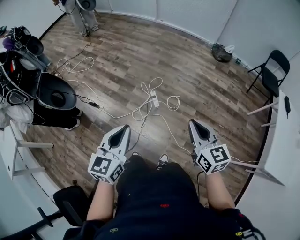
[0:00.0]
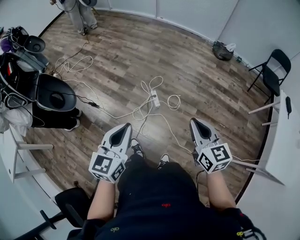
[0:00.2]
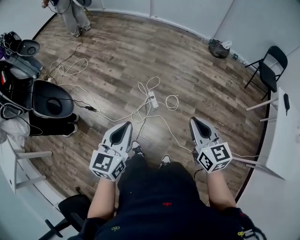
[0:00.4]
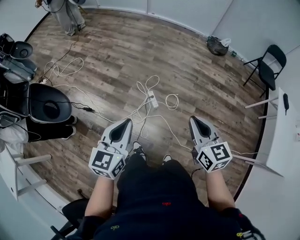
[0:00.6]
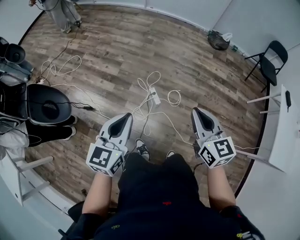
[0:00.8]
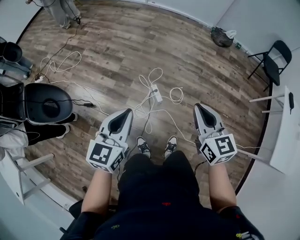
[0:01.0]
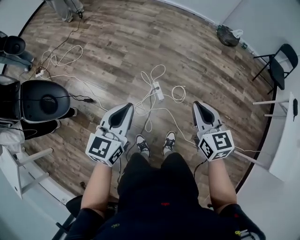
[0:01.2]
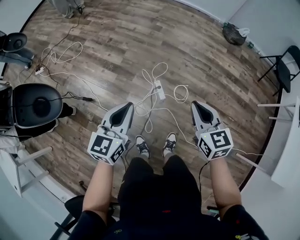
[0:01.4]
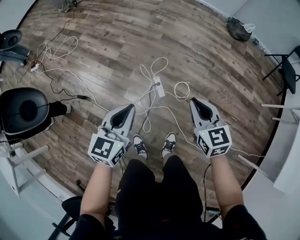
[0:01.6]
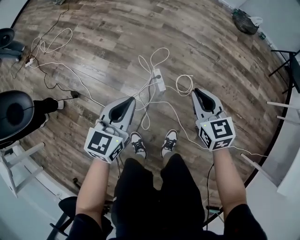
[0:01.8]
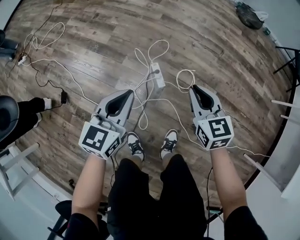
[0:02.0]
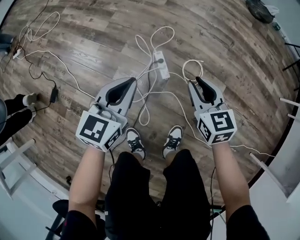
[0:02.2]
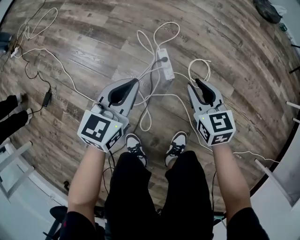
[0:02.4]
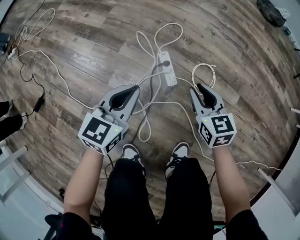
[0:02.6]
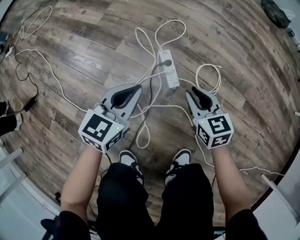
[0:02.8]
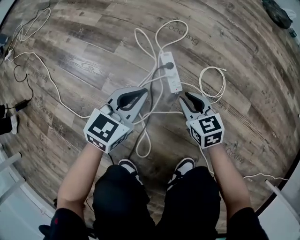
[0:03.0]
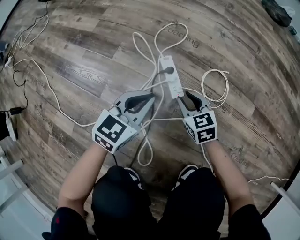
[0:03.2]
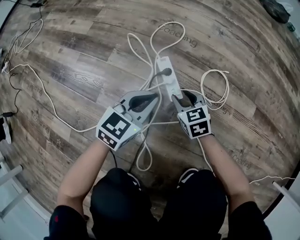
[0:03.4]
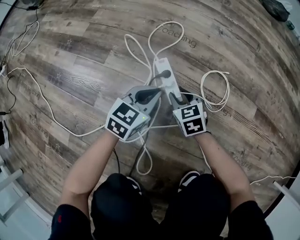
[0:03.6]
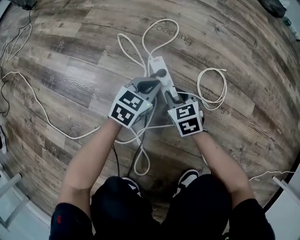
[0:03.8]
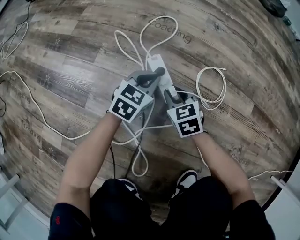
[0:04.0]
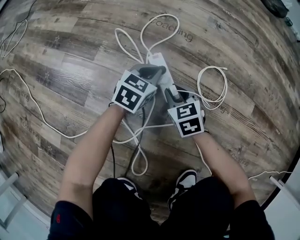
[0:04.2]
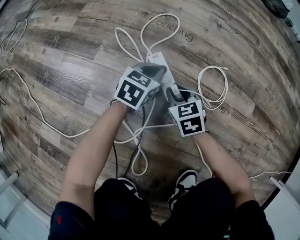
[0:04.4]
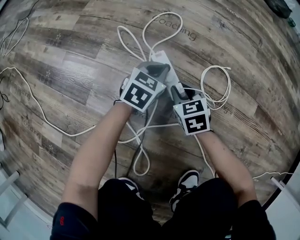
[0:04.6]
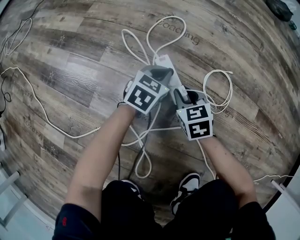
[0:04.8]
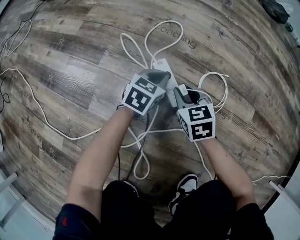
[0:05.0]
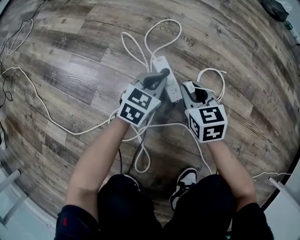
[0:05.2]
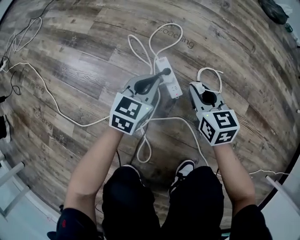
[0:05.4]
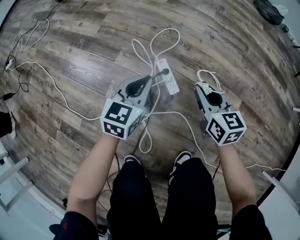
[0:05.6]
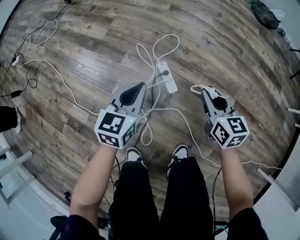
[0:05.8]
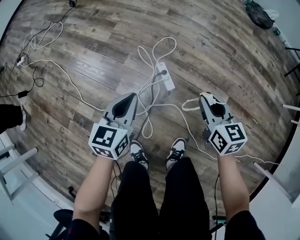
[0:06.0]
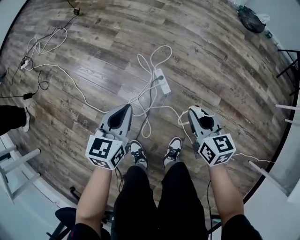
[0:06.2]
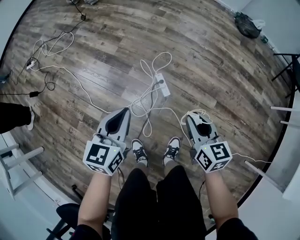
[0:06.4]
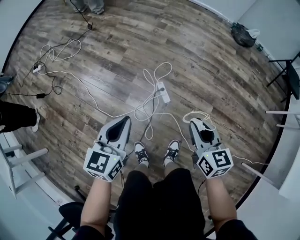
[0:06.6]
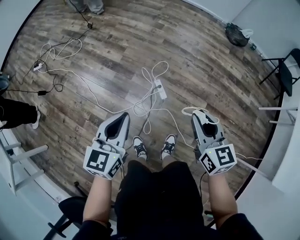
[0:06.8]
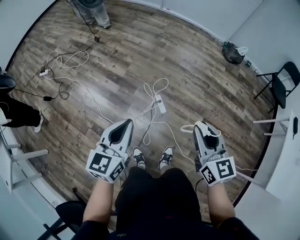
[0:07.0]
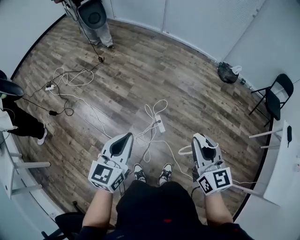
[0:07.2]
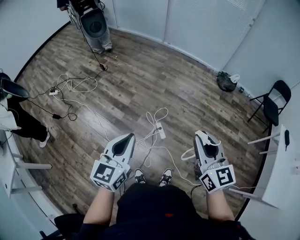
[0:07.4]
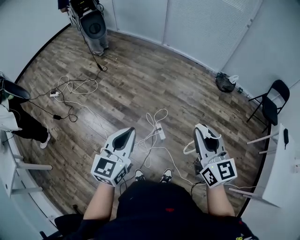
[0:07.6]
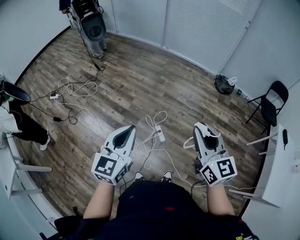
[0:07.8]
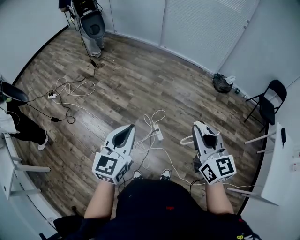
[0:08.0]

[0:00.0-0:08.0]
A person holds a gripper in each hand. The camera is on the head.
0:00.0 to 0:01.6: Both grippers travel together forward and downward, roughly 35 cm.
0:01.6 to 0:03.2: Both grippers travel together downward, roughly 70 cm. The right gripper opens. Meanwhile the left gripper swivels some 20 degrees.
0:03.2 to 0:04.8: The left gripper moves downward and forward, approximately 20 cm, while the right gripper goes some 5 cm forward.
0:04.8 to 0:06.4: The grippers both shift upward by approximately 60 cm. The right gripper swivels roughly 30 degrees. Meanwhile the left gripper changes its angle by approximately 30 degrees.
0:06.4 to 0:08.0: The two grippers go some 50 cm upward. The left gripper turns by about 20 degrees, while the right gripper rotates approximately 30 degrees.

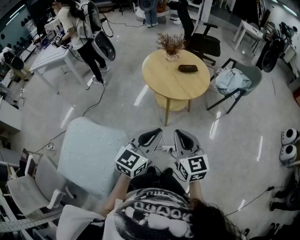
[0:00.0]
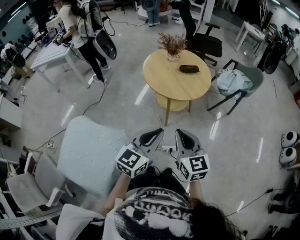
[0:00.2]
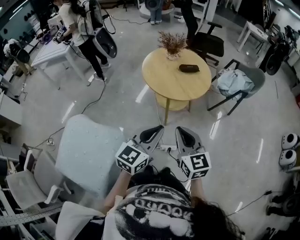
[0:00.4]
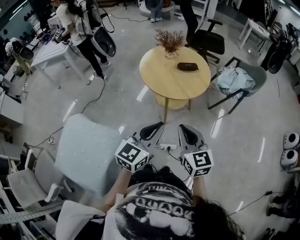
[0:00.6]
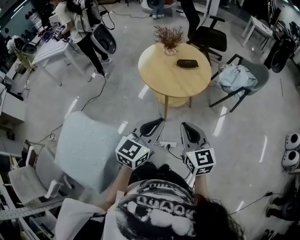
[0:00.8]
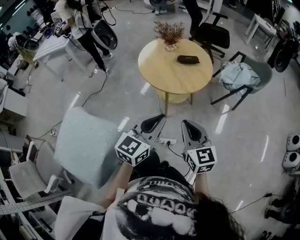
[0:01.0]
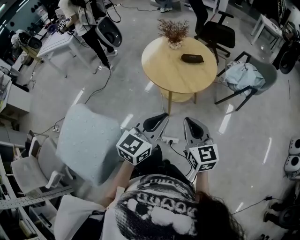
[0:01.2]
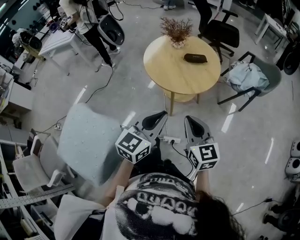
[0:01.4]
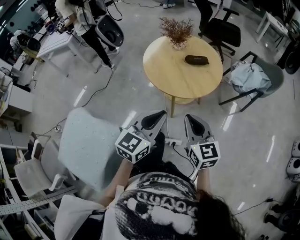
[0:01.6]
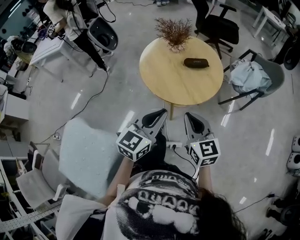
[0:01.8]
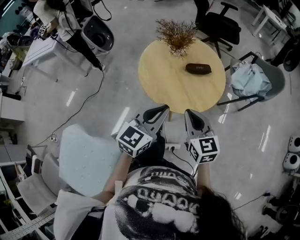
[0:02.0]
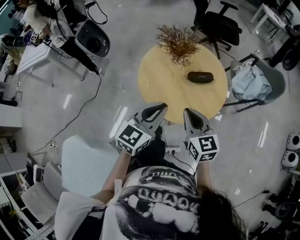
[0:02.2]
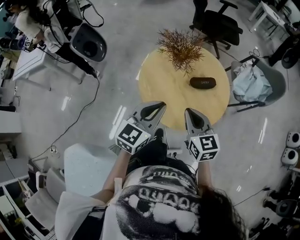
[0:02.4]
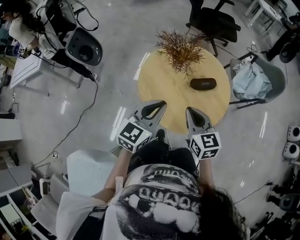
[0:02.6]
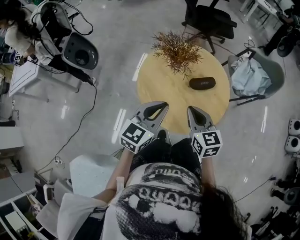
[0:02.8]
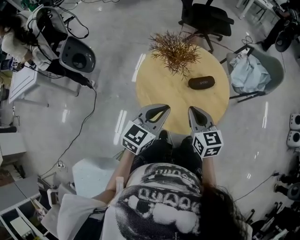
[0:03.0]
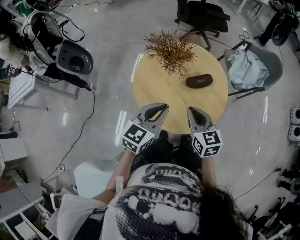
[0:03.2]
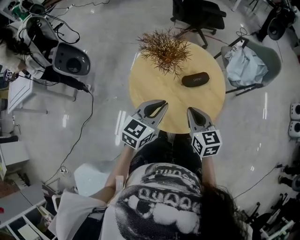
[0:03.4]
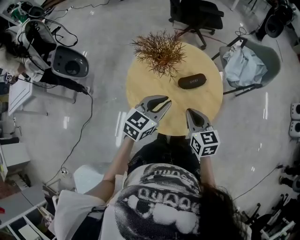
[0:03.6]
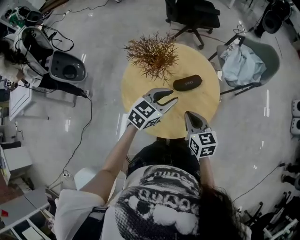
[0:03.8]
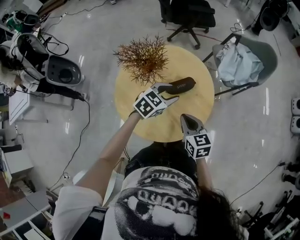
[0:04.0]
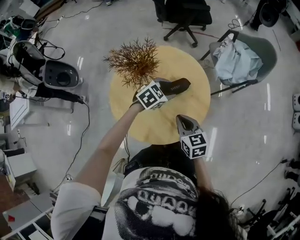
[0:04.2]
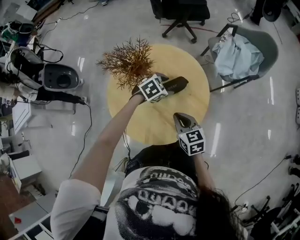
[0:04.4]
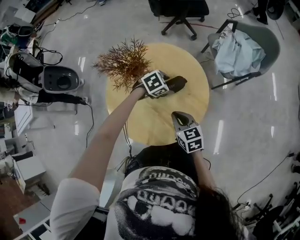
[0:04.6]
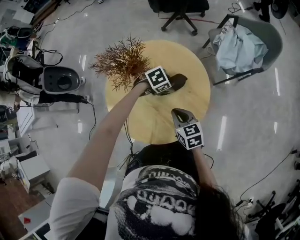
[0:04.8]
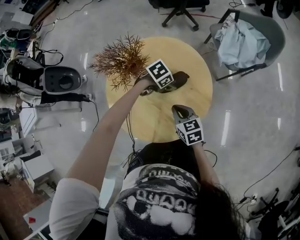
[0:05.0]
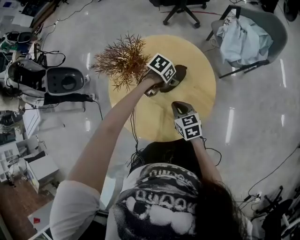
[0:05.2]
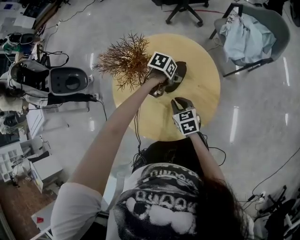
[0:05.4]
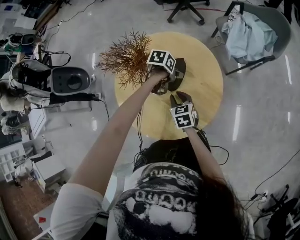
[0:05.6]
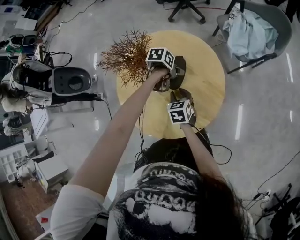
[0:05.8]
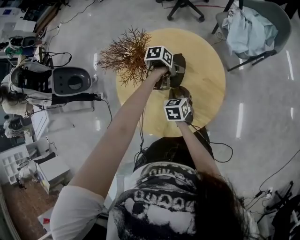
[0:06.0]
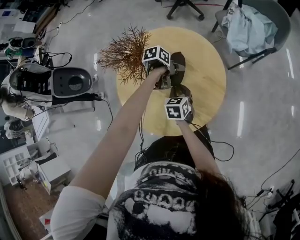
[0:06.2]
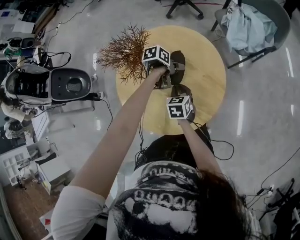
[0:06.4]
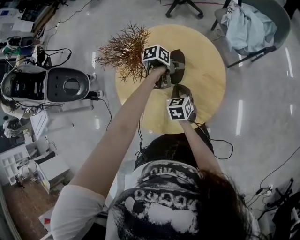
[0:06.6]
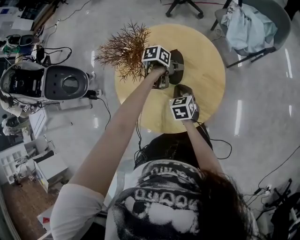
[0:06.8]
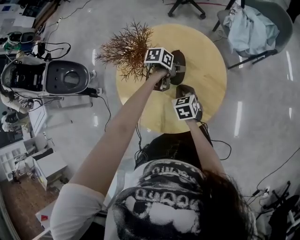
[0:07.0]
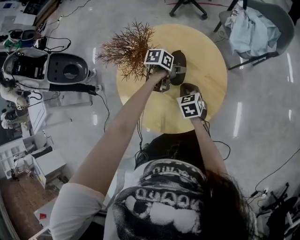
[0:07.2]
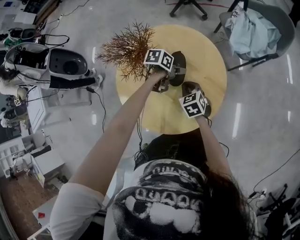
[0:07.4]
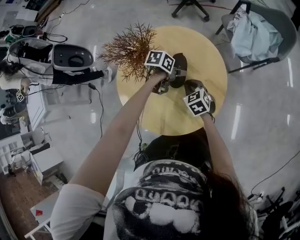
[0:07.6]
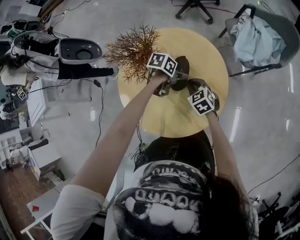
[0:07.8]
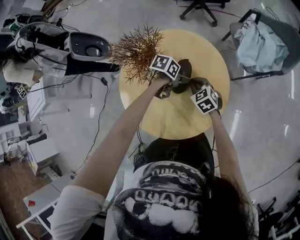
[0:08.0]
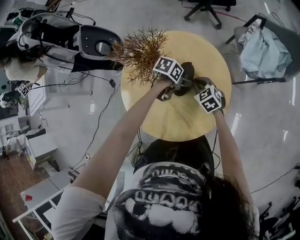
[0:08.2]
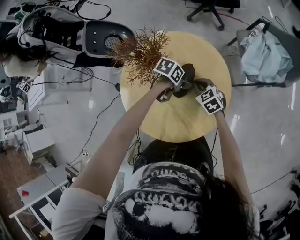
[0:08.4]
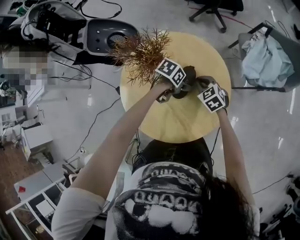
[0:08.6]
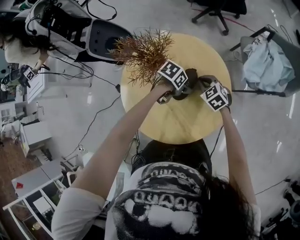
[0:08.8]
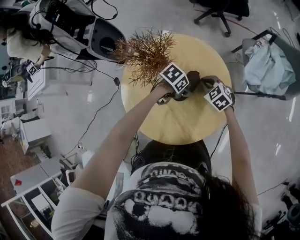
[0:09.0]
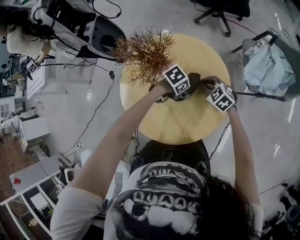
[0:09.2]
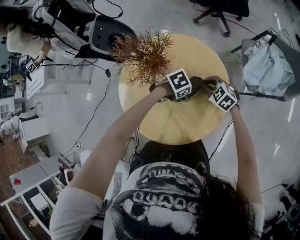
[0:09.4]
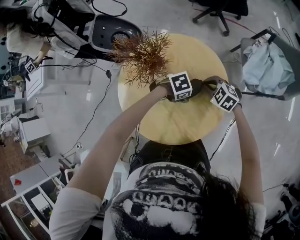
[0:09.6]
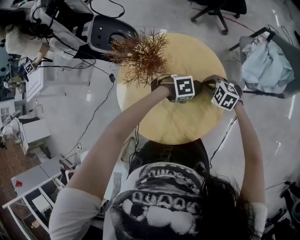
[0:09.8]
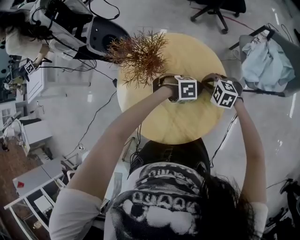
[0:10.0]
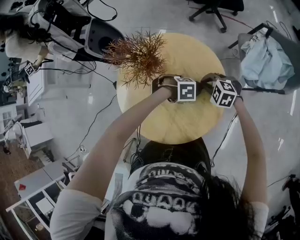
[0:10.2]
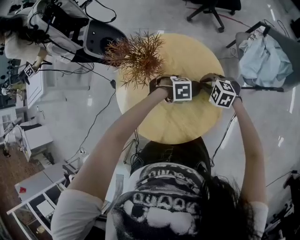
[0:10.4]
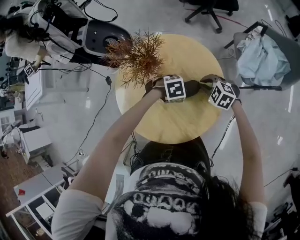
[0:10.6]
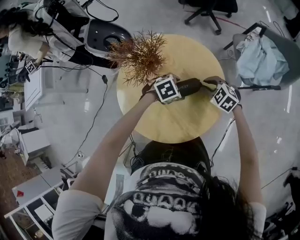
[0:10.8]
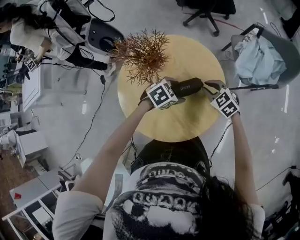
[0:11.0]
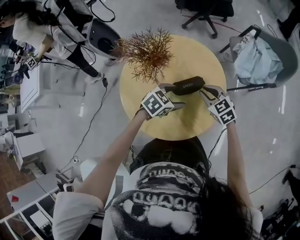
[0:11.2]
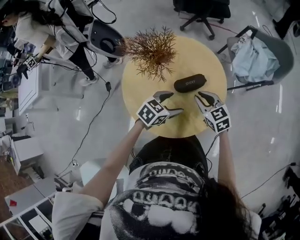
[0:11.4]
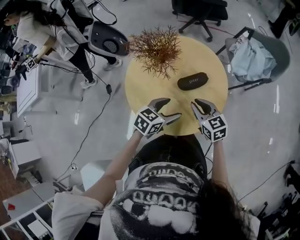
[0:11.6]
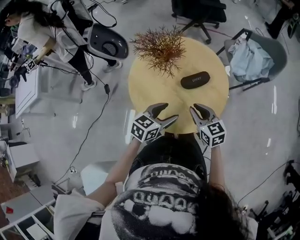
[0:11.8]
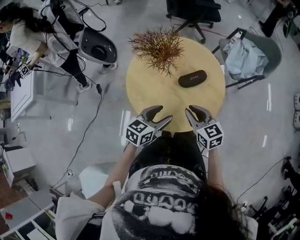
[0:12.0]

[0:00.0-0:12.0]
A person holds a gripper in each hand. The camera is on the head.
0:00.0 to 0:01.6: The two grippers go about 15 cm forward and to the right.
0:01.6 to 0:03.0: Both grippers move forward, some 30 cm.
0:03.0 to 0:04.4: The right gripper travels downward, to the right and forward by approximately 15 cm. Meanwhile the left gripper shifts approximately 30 cm forward, downward and to the right, angles its fingers downward, by some 40 degrees, and opens up.
0:04.4 to 0:06.0: The left gripper goes some 5 cm downward, and rolls counterclockwise, seen from behind, by about 60 degrees. Meanwhile the right gripper shifts approximately 10 cm downward, rotates roughly 20 degrees, and opens.
0:06.0 to 0:07.6: The right gripper swivels about 30 degrees, and closes up.
0:07.6 to 0:09.0: The right gripper moves some 10 cm, and swivels some 30 degrees.
0:09.0 to 0:10.4: The left gripper rolls clockwise, seen from behind, by about 40 degrees, while the right gripper swivels some 30 degrees.
0:10.4 to 0:12.0: The right gripper shifts by roughly 25 cm, and rotates approximately 60 degrees. Meanwhile the left gripper moves about 25 cm, and tilts its fingers roughly 50 degrees upward.

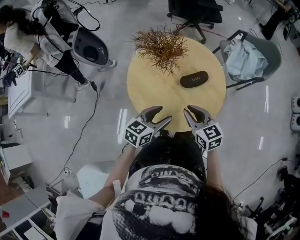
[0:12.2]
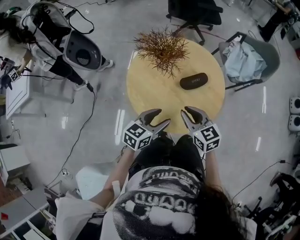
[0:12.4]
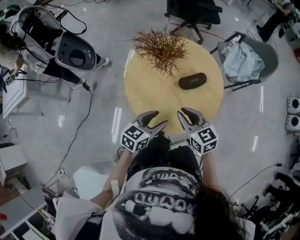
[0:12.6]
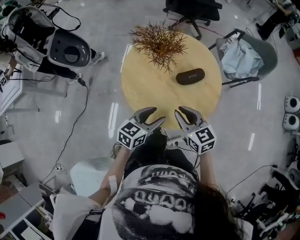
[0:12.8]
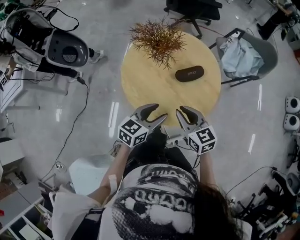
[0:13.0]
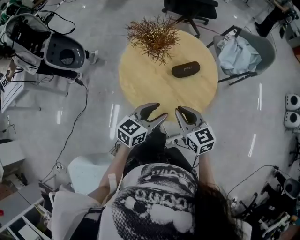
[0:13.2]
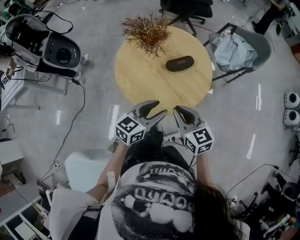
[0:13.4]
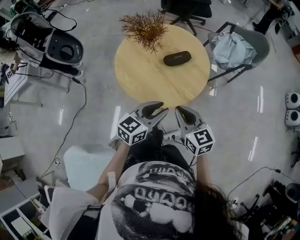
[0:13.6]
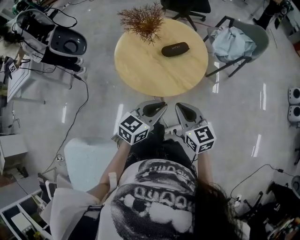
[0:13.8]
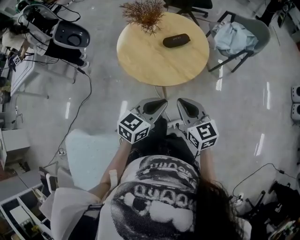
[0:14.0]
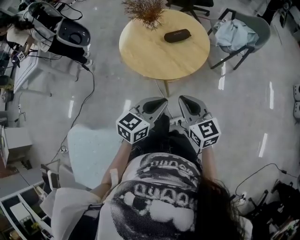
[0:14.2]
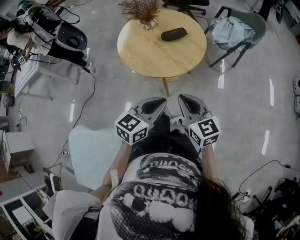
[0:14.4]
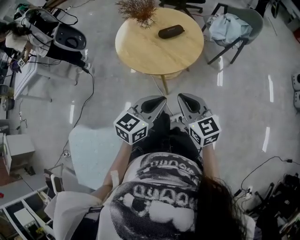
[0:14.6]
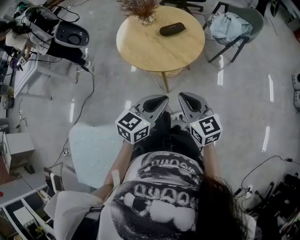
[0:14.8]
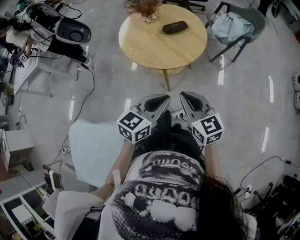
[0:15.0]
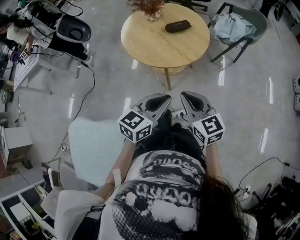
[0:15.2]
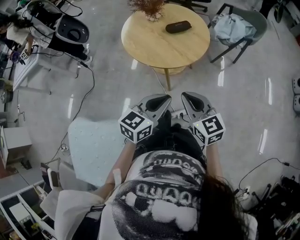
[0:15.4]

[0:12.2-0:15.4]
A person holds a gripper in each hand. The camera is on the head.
0:12.2 to 0:13.8: The left gripper travels backward, to the right and upward by approximately 20 cm, and closes its fingers. Meanwhile the right gripper shifts approximately 20 cm backward and to the right.
0:13.8 to 0:15.4: The grippers both shift backward by approximately 15 cm.
